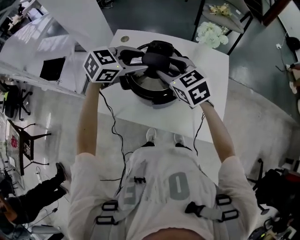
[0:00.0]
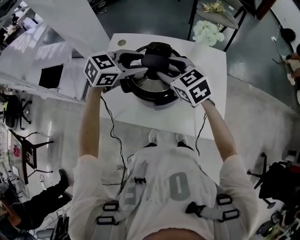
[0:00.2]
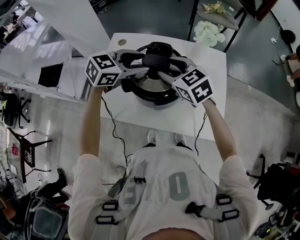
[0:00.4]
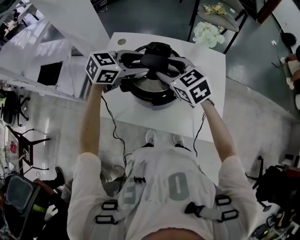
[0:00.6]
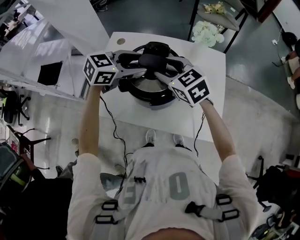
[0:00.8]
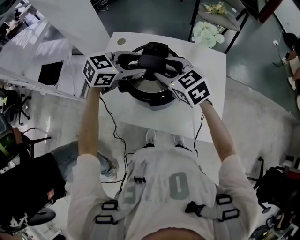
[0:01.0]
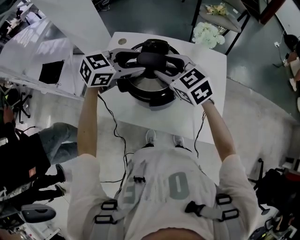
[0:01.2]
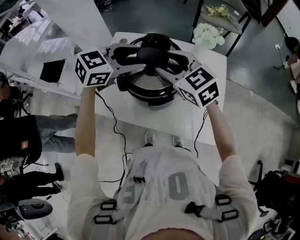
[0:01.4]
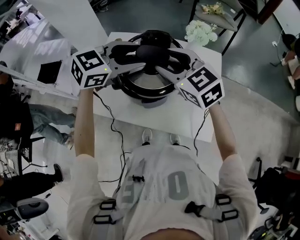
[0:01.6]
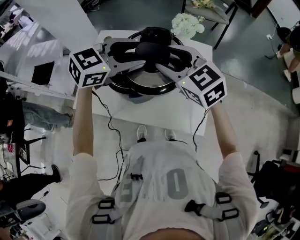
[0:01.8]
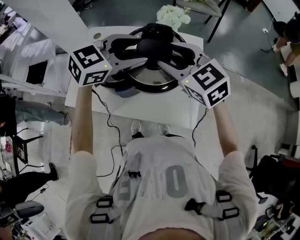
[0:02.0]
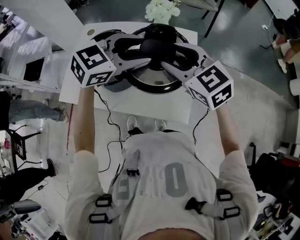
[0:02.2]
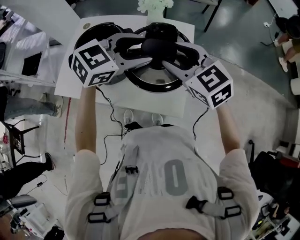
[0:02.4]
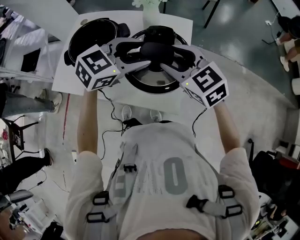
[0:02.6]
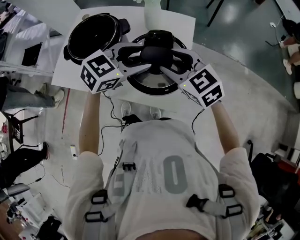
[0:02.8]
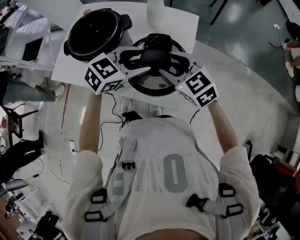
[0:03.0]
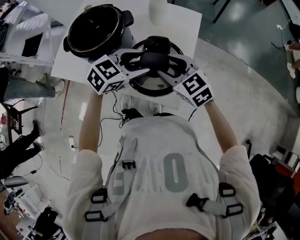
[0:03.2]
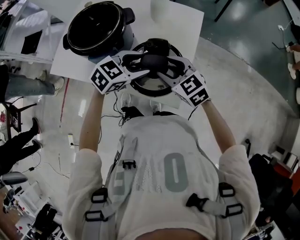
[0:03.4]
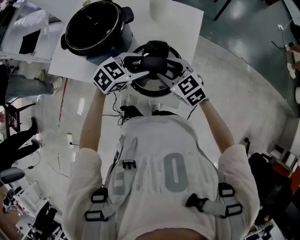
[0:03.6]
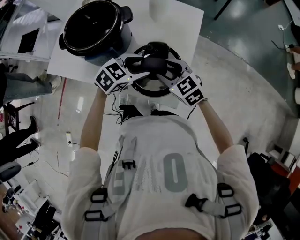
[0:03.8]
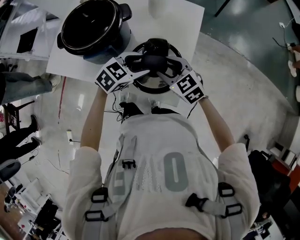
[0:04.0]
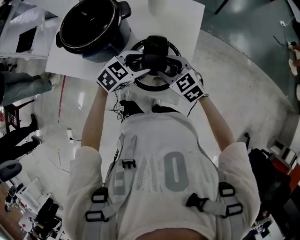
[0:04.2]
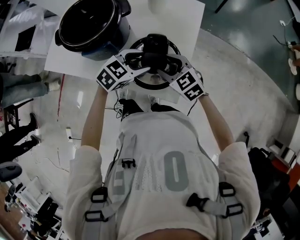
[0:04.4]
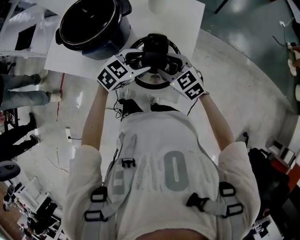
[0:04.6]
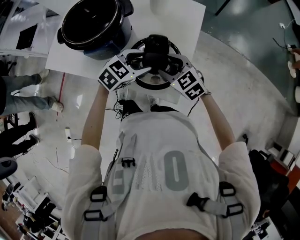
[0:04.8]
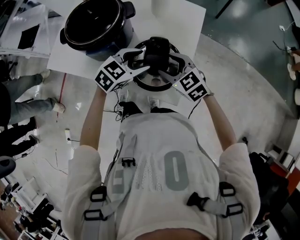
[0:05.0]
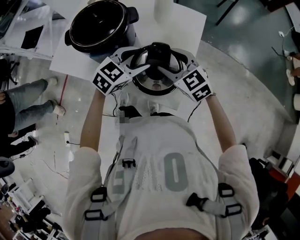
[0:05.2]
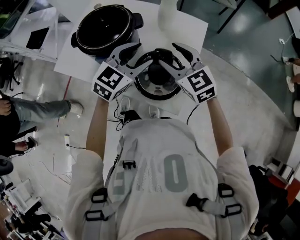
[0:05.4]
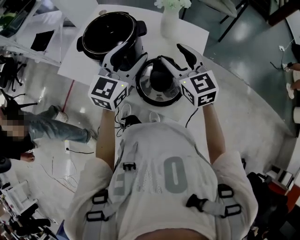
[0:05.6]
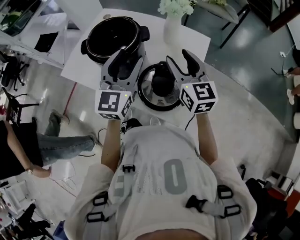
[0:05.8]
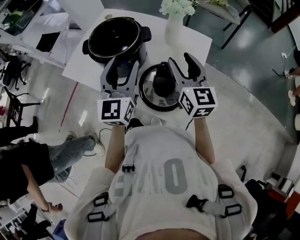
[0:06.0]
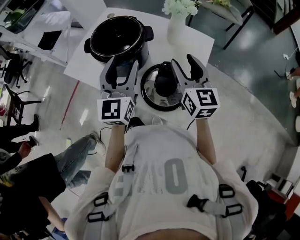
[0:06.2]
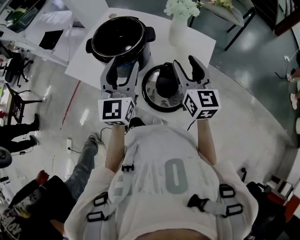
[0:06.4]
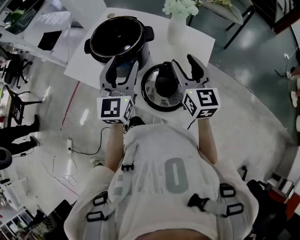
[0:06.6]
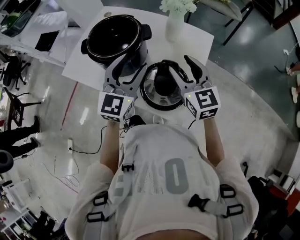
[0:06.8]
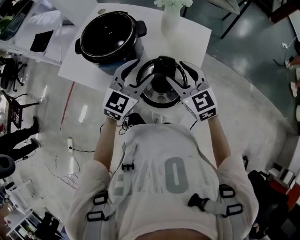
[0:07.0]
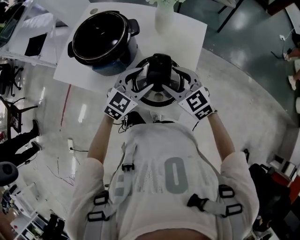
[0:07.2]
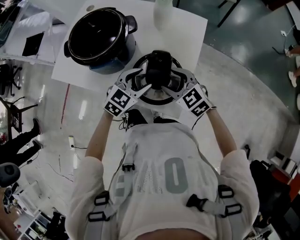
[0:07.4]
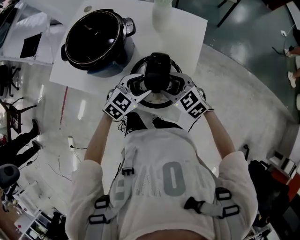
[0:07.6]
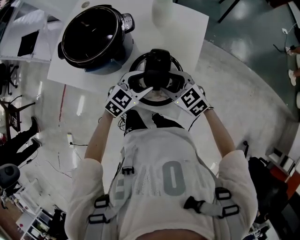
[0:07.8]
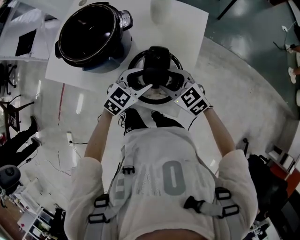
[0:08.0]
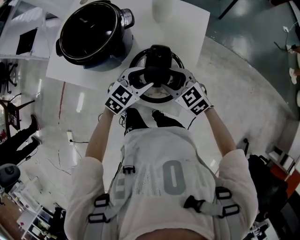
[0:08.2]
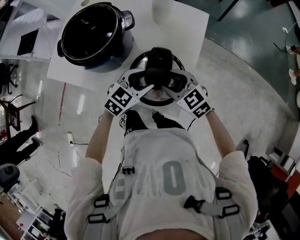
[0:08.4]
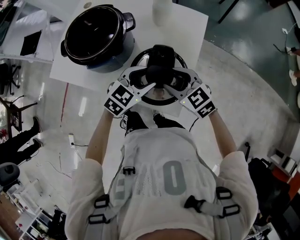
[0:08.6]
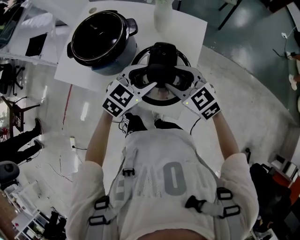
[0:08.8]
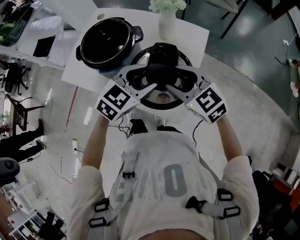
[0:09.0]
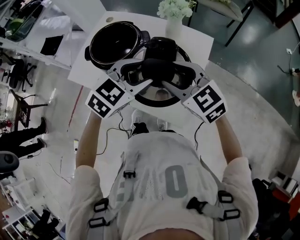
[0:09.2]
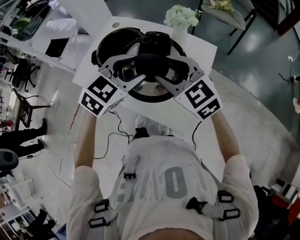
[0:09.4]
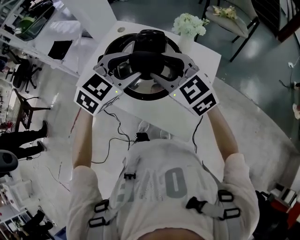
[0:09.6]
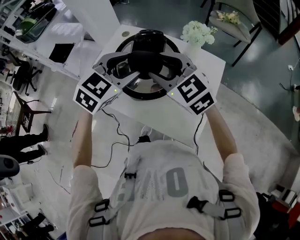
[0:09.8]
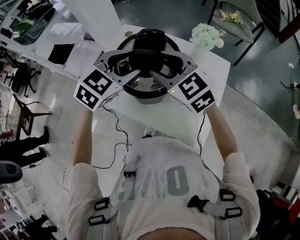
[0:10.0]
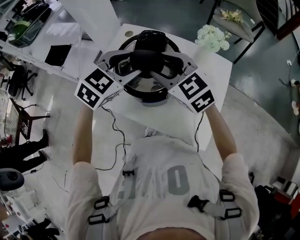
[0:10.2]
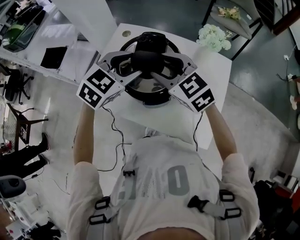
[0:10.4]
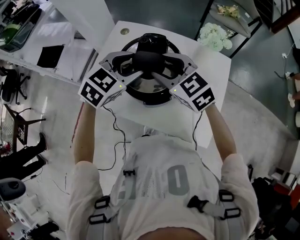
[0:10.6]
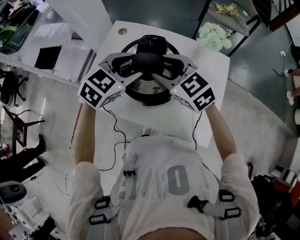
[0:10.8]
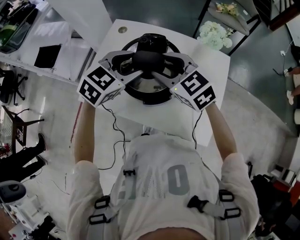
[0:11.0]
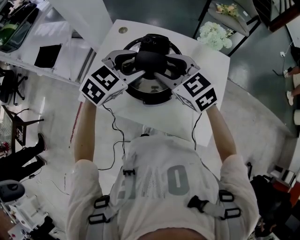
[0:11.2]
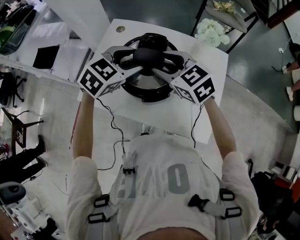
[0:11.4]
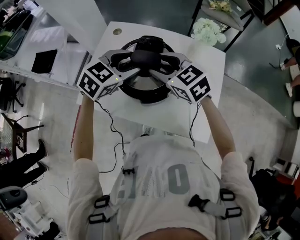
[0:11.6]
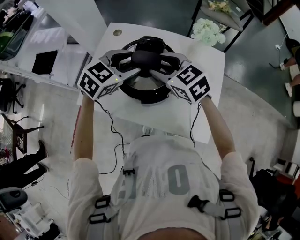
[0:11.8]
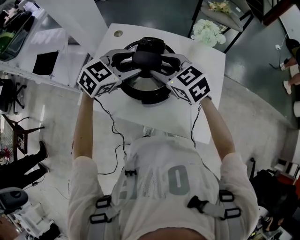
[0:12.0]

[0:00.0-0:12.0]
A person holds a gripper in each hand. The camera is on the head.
0:00.0 to 0:01.6: The grippers both shift upward by approximately 5 cm.
0:01.6 to 0:03.0: Both grippers travel together to the right and downward, approximately 30 cm.
0:03.0 to 0:04.4: Both grippers travel together downward, about 15 cm.
0:04.4 to 0:06.0: The left gripper shifts about 25 cm upward and to the left, and tips its fingers upward by about 40 degrees. The right gripper is displaced upward by about 20 cm, and angles its fingers upward, by about 30 degrees.
0:06.0 to 0:07.6: The left gripper goes about 25 cm downward and to the right, and tips its fingers downward by some 40 degrees. Meanwhile the right gripper heads downward, covering roughly 20 cm, and angles its fingers downward, by approximately 30 degrees.
0:07.6 to 0:09.0: Both grippers travel together upward, approximately 15 cm.
0:09.0 to 0:10.4: The two grippers go roughly 30 cm to the left and forward.
0:10.4 to 0:12.0: The grippers move only a little.

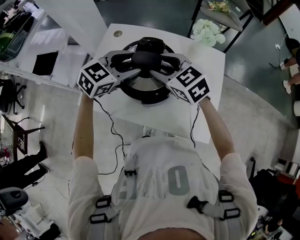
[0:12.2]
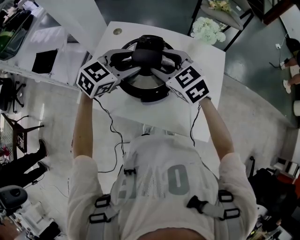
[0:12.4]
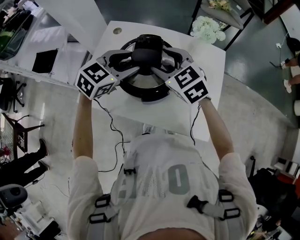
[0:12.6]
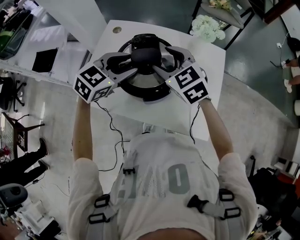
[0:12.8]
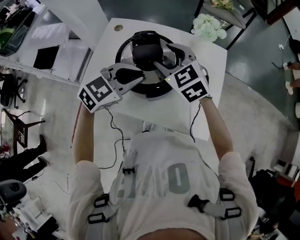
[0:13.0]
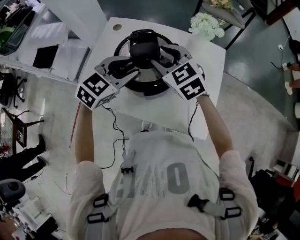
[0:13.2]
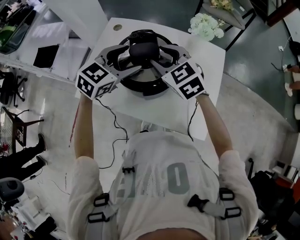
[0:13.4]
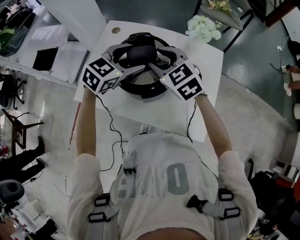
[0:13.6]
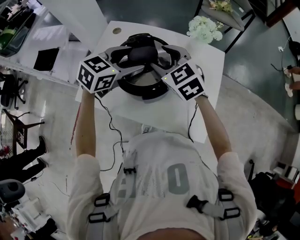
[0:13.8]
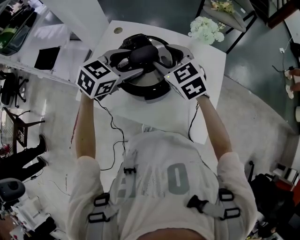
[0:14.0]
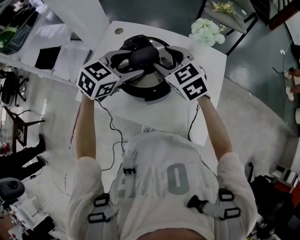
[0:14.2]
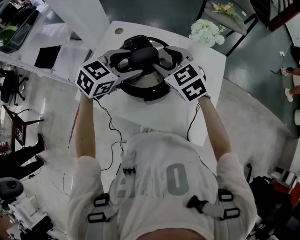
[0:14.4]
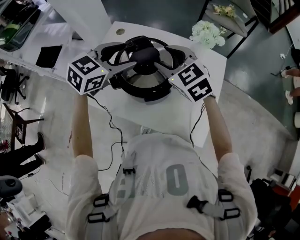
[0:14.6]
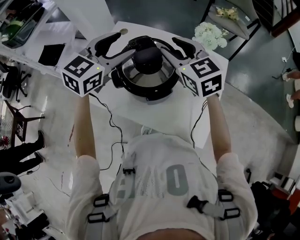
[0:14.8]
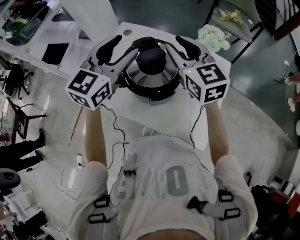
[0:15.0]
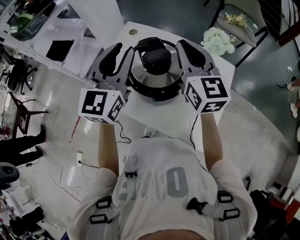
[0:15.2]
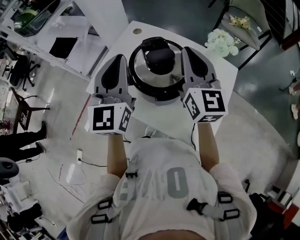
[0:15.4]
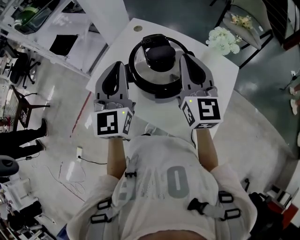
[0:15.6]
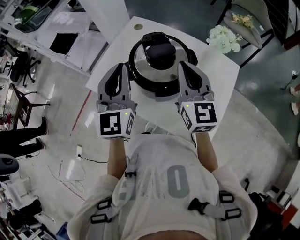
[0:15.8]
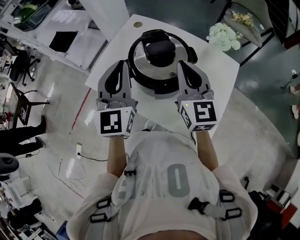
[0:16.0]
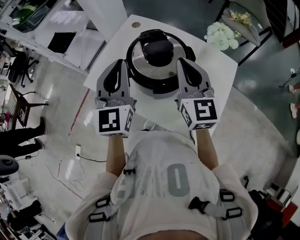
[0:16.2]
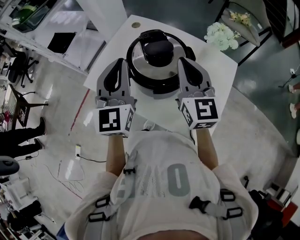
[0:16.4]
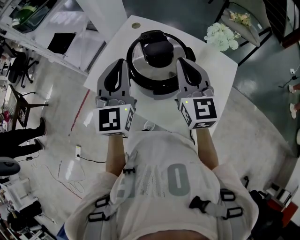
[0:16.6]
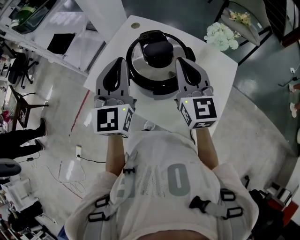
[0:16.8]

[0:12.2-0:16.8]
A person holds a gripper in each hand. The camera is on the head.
0:12.2 to 0:13.8: The left gripper closes, then reopens.
0:13.8 to 0:15.2: The right gripper heads upward, covering roughly 10 cm, rotates roughly 30 degrees, and closes up. The left gripper shifts approximately 15 cm upward and to the left, tilts its fingers roughly 40 degrees upward, and closes up.
0:15.2 to 0:16.8: The right gripper is displaced downward and backward by about 5 cm. Meanwhile the left gripper moves roughly 5 cm.

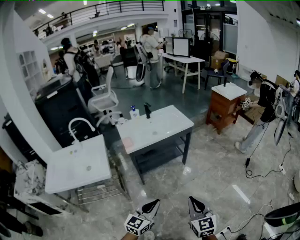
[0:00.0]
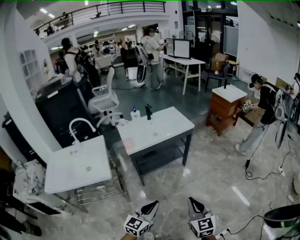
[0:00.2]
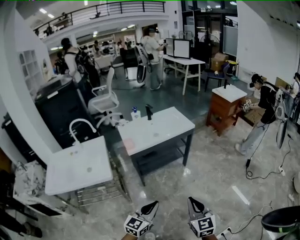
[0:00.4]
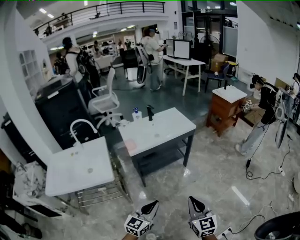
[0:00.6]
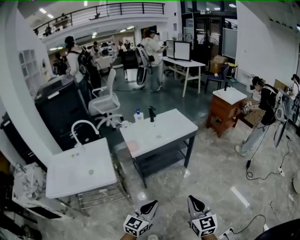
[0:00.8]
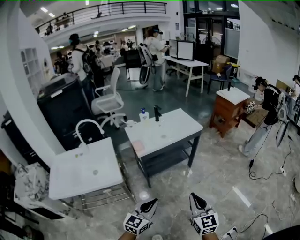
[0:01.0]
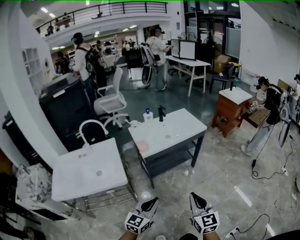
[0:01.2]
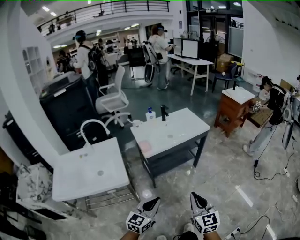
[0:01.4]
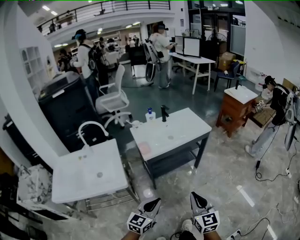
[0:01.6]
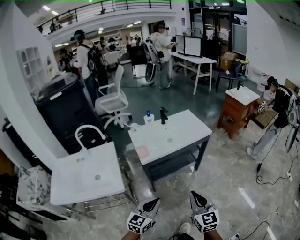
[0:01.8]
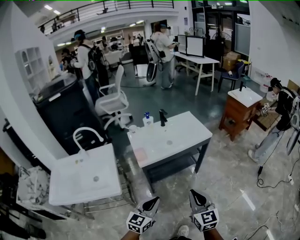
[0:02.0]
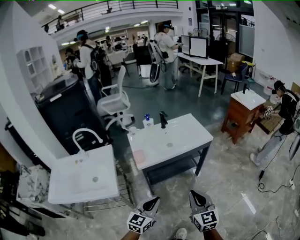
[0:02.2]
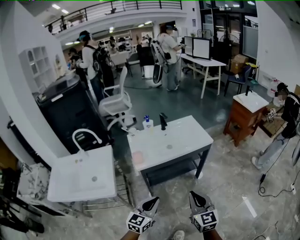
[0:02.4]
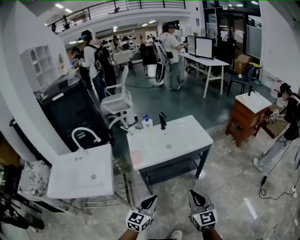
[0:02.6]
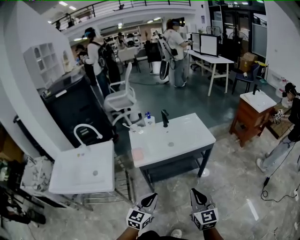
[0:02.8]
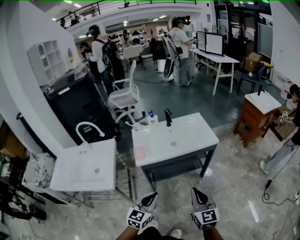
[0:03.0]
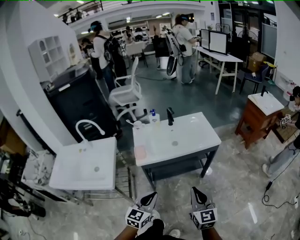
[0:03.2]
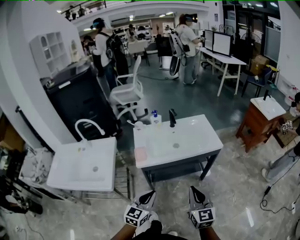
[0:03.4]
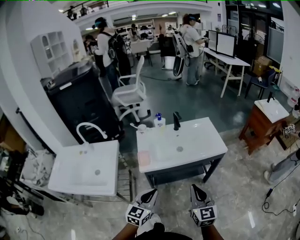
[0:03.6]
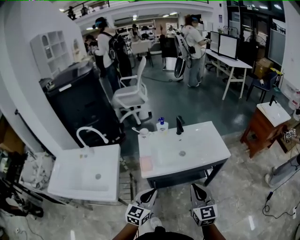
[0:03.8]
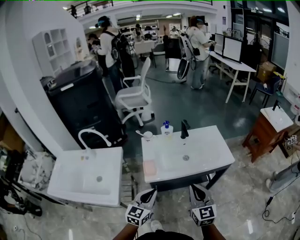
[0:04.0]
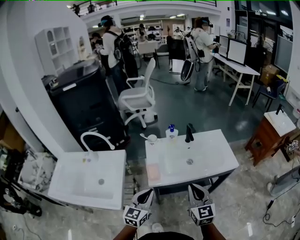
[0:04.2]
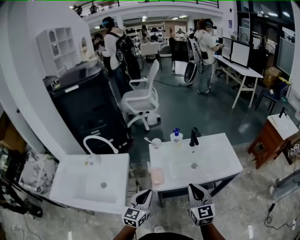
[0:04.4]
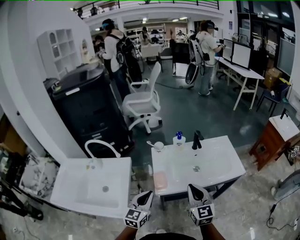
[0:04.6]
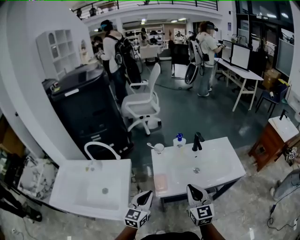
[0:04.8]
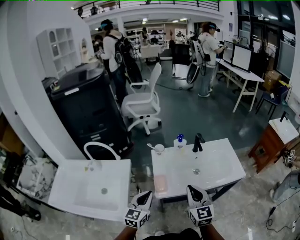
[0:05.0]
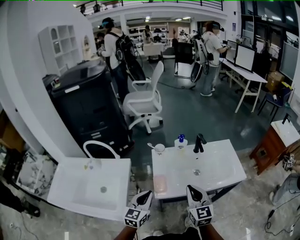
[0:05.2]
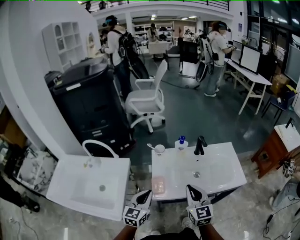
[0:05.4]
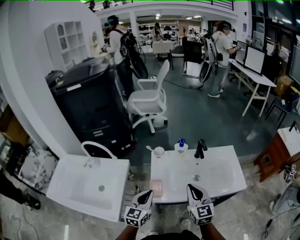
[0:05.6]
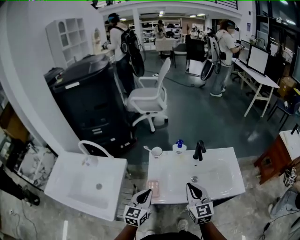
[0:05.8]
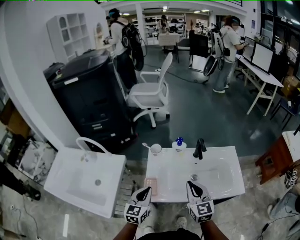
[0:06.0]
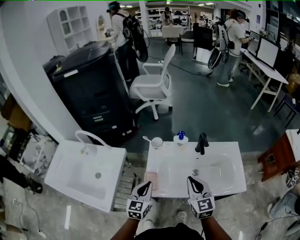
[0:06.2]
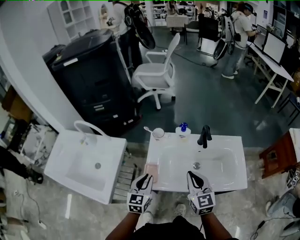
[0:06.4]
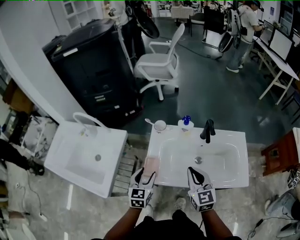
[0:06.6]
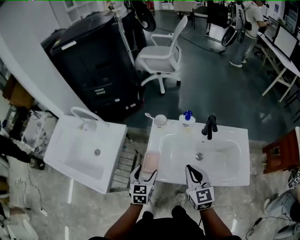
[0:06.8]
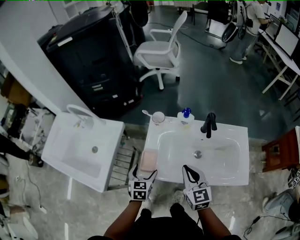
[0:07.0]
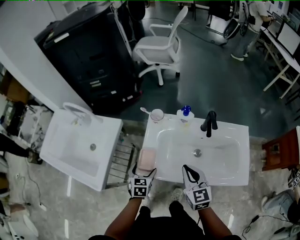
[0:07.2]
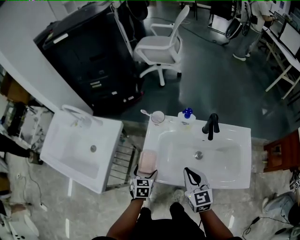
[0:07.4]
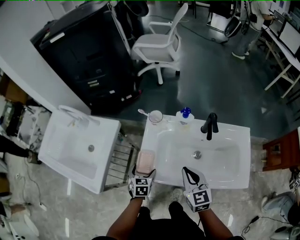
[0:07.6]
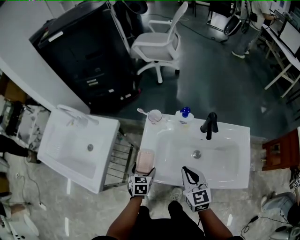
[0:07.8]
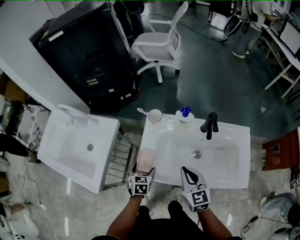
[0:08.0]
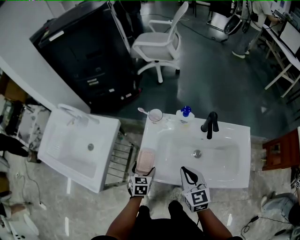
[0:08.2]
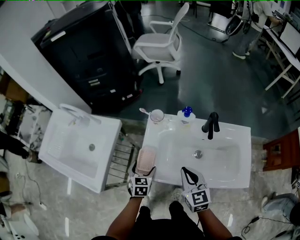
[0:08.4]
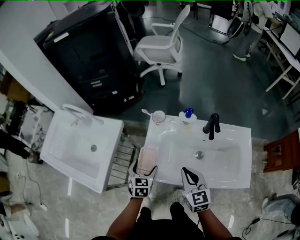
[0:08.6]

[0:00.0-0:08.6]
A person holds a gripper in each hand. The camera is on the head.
0:00.0 to 0:01.4: Both grippers move to the left, approximately 15 cm.
0:01.4 to 0:02.8: Both grippers move forward and to the right, approximately 20 cm.
0:02.8 to 0:04.4: The grippers both shift forward and to the left by some 30 cm.
0:04.4 to 0:05.8: The grippers both shift forward by approximately 10 cm.
0:05.8 to 0:07.2: The right gripper heads downward, covering approximately 10 cm, while the left gripper goes about 15 cm downward, swivels about 40 degrees, and opens its fingers.
0:07.2 to 0:08.6: The grippers stay close to where they were, moving slightly.
